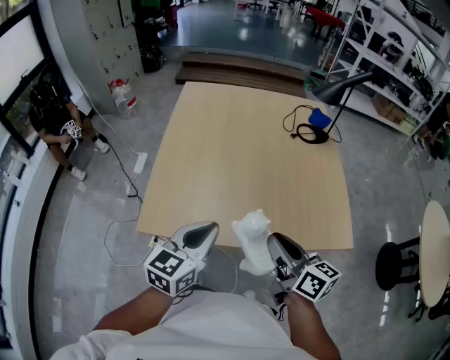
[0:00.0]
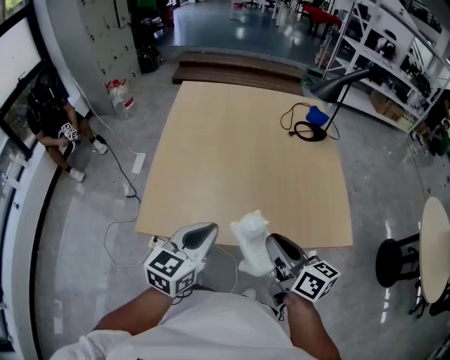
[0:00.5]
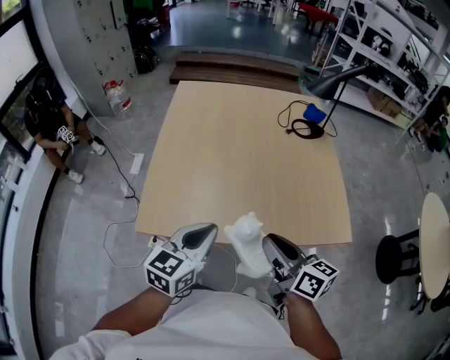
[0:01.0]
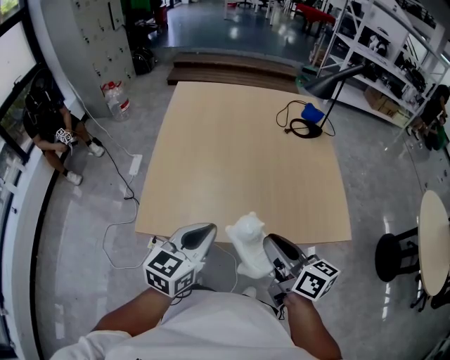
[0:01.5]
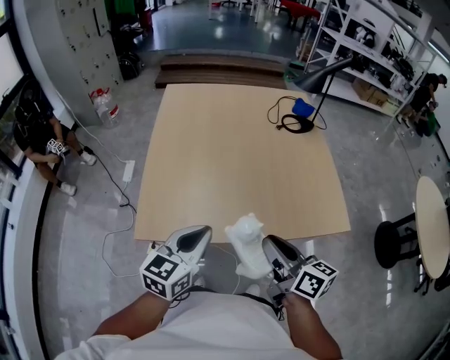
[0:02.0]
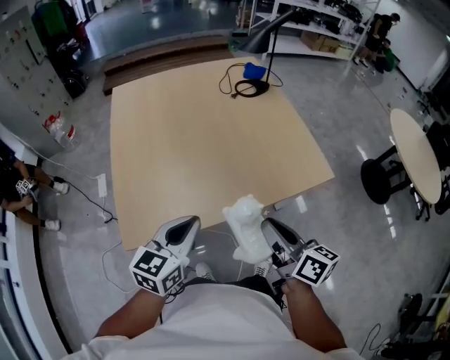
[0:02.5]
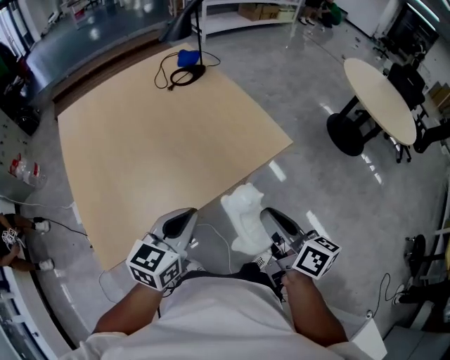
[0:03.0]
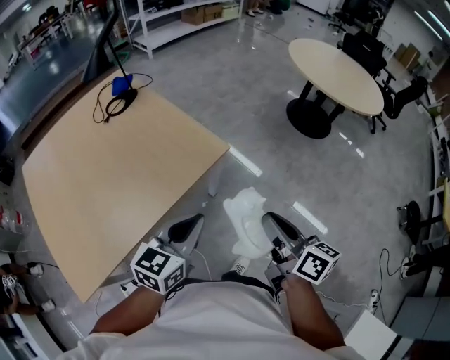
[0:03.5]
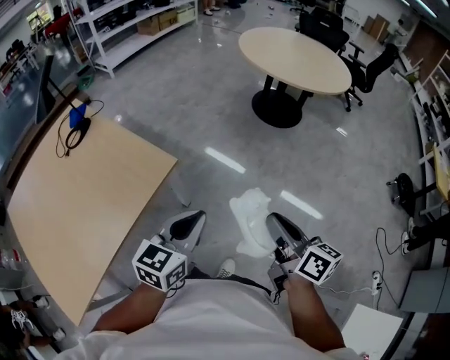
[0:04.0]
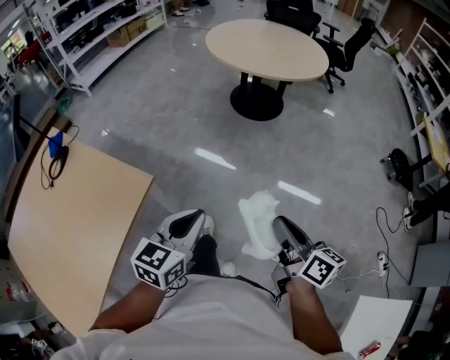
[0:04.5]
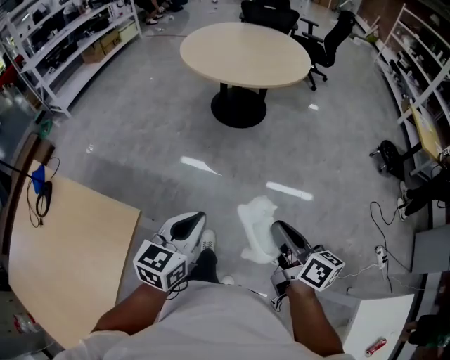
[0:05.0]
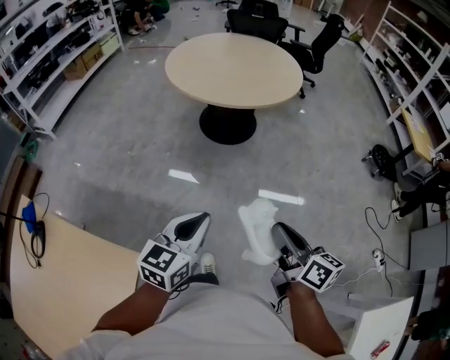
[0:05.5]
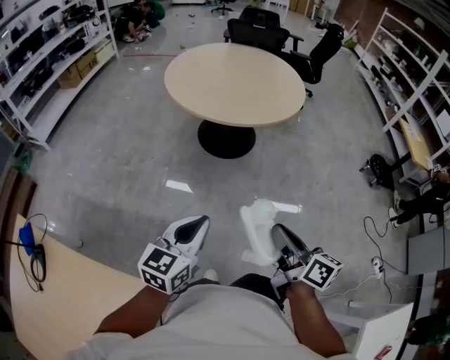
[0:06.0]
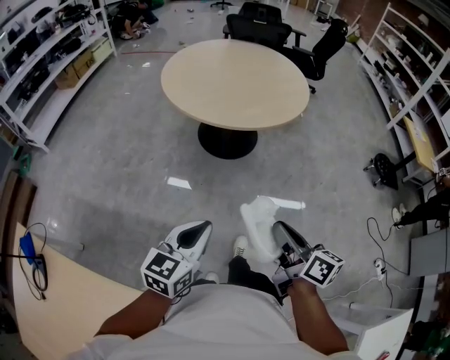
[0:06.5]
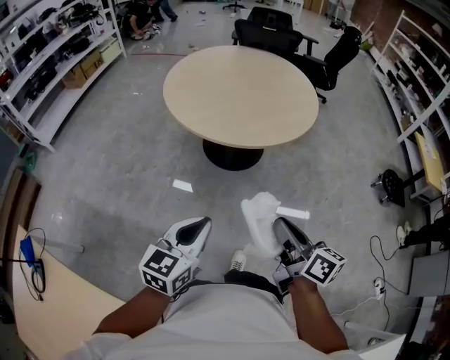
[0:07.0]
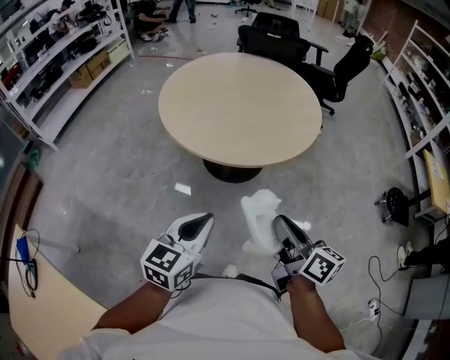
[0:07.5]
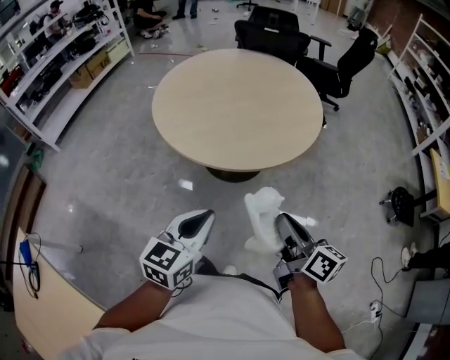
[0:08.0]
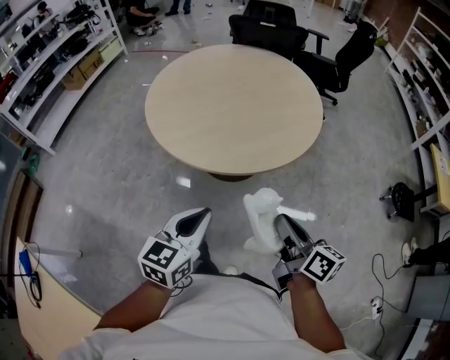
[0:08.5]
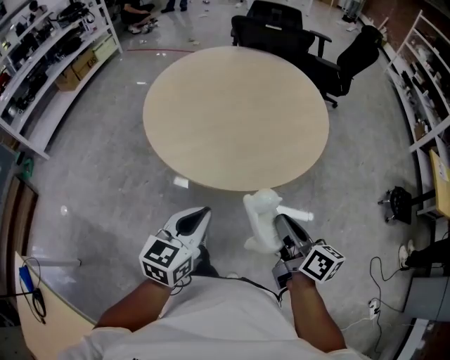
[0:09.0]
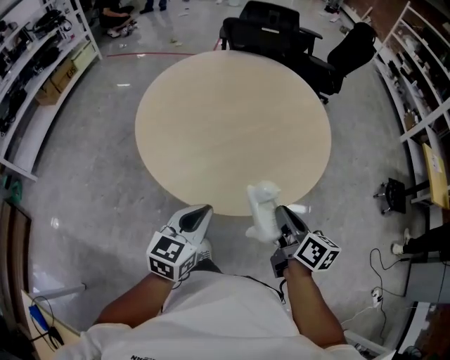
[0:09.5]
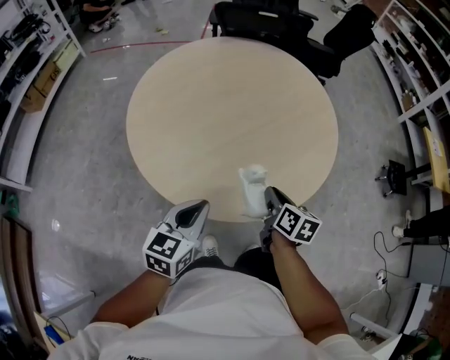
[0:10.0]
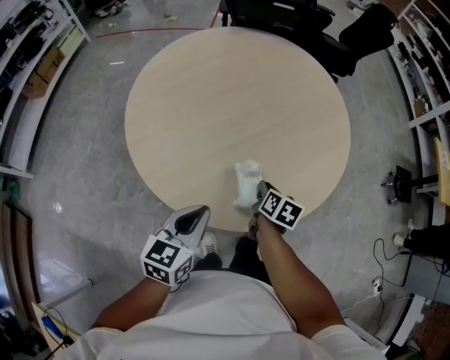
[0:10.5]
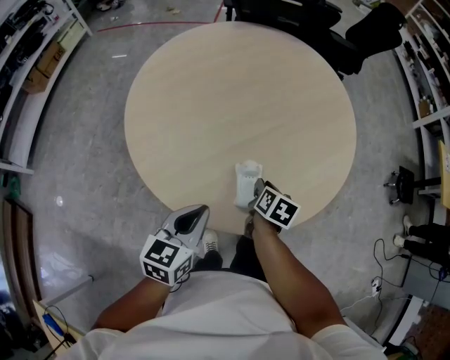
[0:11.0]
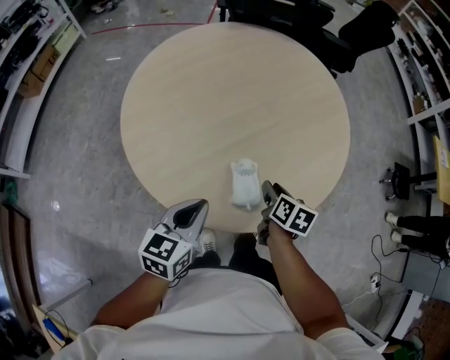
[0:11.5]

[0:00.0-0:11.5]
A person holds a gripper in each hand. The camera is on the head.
0:00.0 to 0:02.0: The grippers make only small movements.
0:02.0 to 0:04.0: Both grippers are carried roughly 50 cm. The right gripper swivels some 60 degrees, while the left gripper changes its angle by about 60 degrees.
0:04.0 to 0:06.0: The grippers both shift forward by about 30 cm. The right gripper changes its angle by about 20 degrees. Meanwhile the left gripper turns by some 20 degrees.
0:06.0 to 0:07.5: The right gripper goes some 25 cm forward; the left gripper heads forward and to the right, covering approximately 20 cm.
0:07.5 to 0:09.5: The grippers both shift forward by roughly 25 cm.
0:09.5 to 0:11.5: The left gripper moves forward, some 10 cm, while the right gripper shifts about 20 cm downward and forward, and swivels roughly 30 degrees.

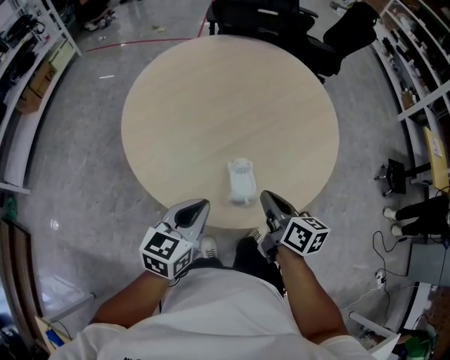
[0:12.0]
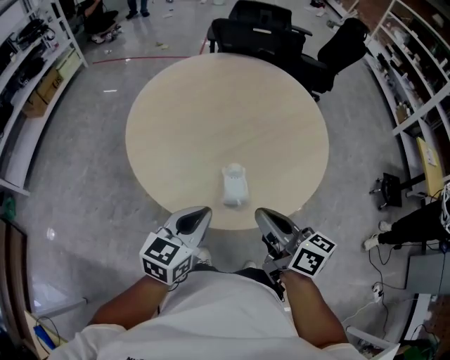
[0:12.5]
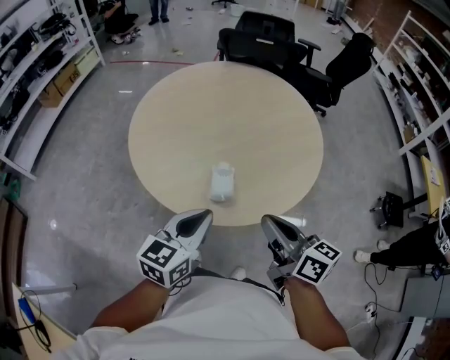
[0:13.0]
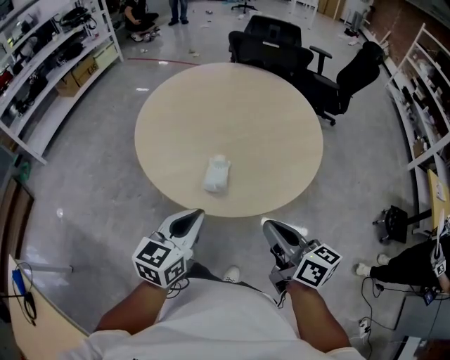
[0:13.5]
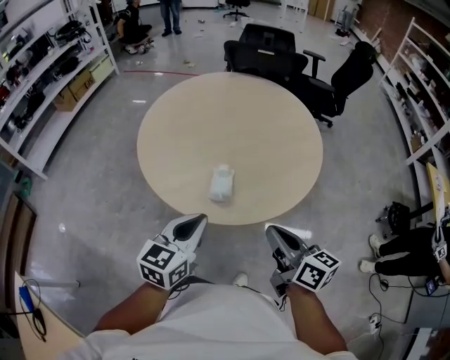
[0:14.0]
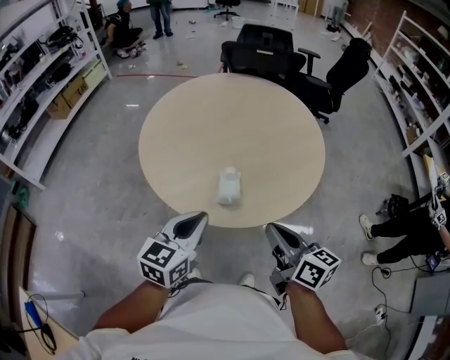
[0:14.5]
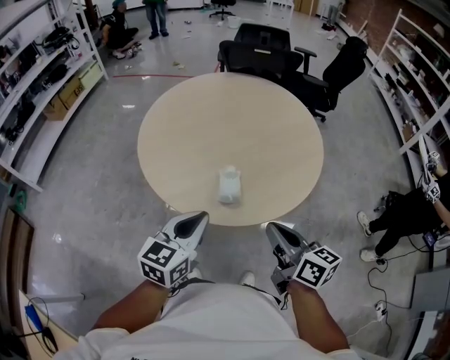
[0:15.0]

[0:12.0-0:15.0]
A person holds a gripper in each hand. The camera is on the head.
0:12.0 to 0:13.5: The left gripper travels backward, to the right and upward by some 15 cm. The right gripper moves backward, upward and to the right, approximately 20 cm, and rotates approximately 20 degrees.
0:13.5 to 0:15.0: Both grippers move to the left, roughly 5 cm.

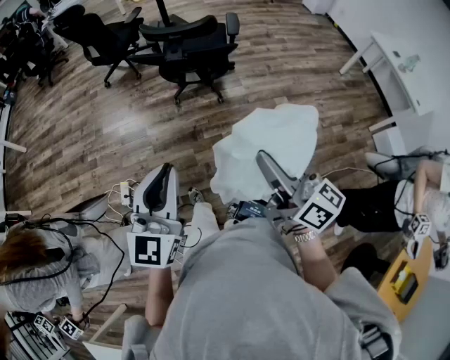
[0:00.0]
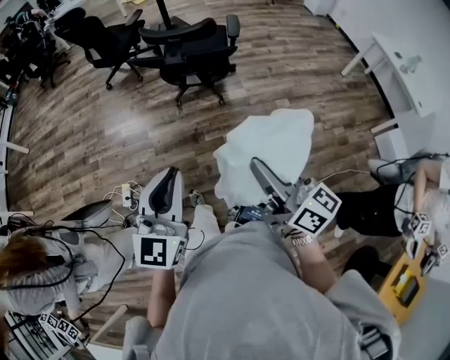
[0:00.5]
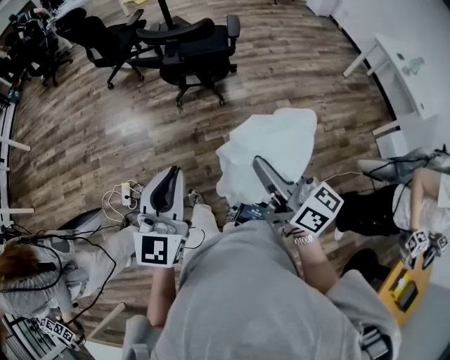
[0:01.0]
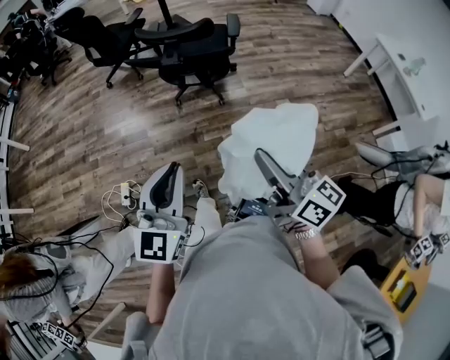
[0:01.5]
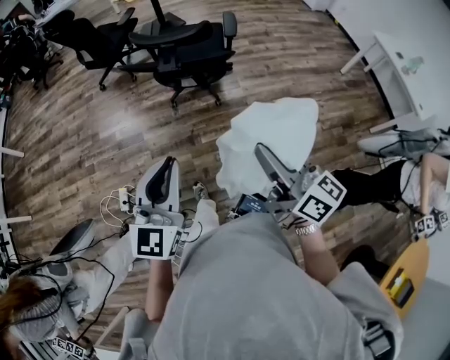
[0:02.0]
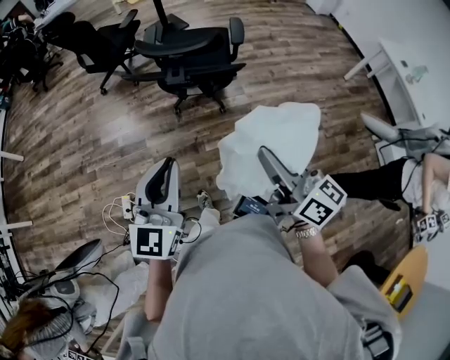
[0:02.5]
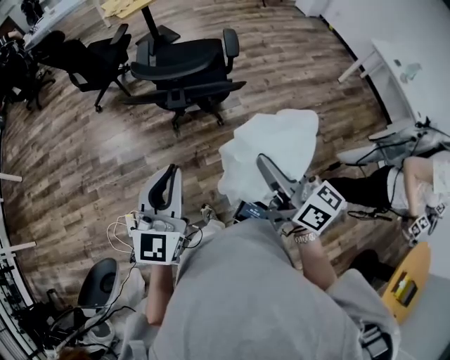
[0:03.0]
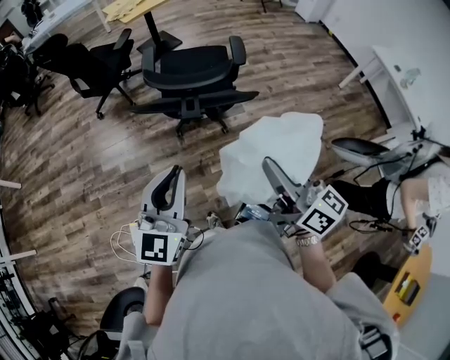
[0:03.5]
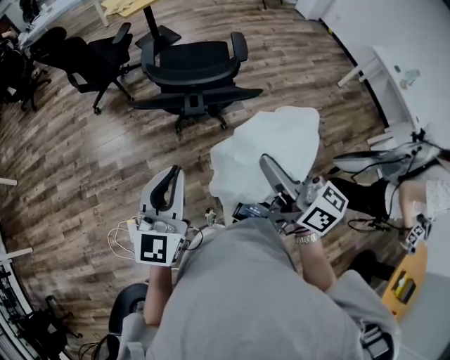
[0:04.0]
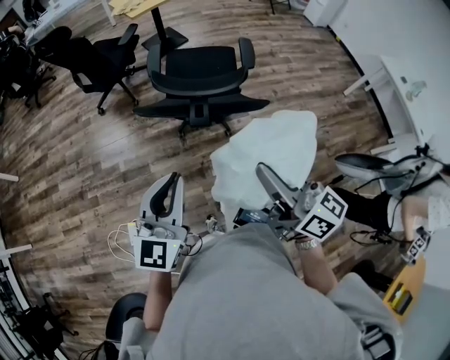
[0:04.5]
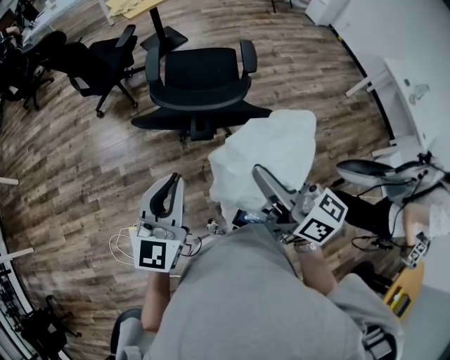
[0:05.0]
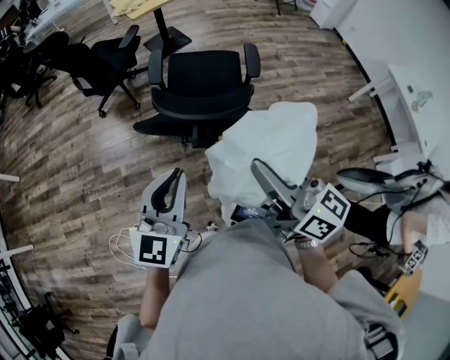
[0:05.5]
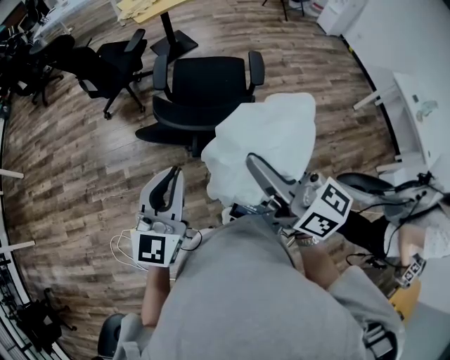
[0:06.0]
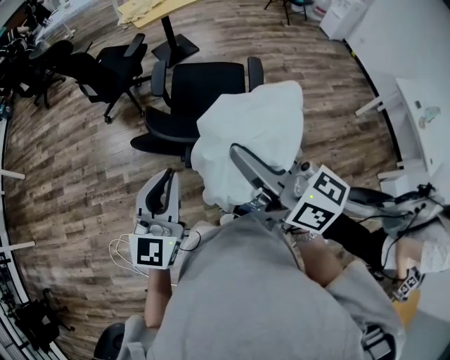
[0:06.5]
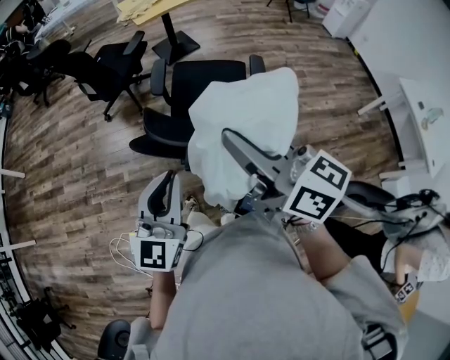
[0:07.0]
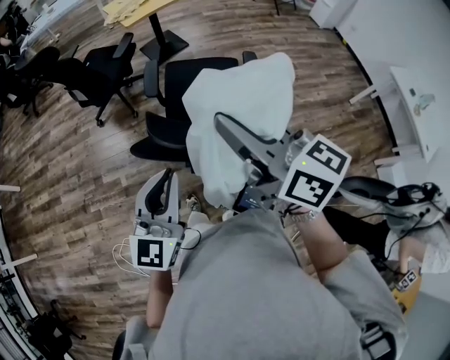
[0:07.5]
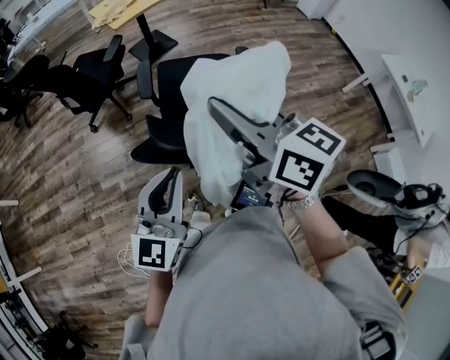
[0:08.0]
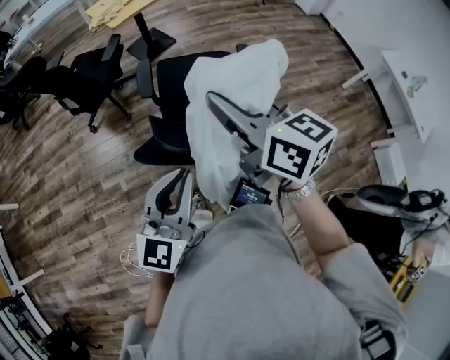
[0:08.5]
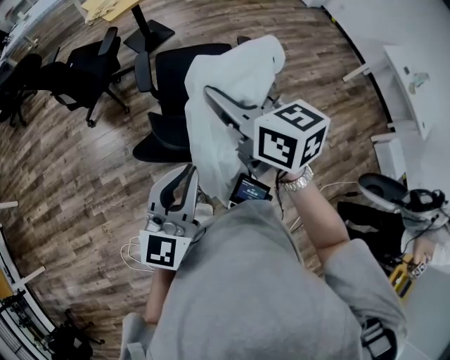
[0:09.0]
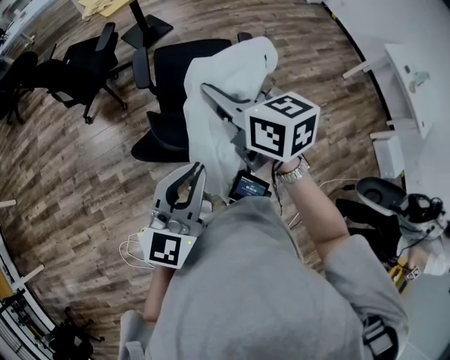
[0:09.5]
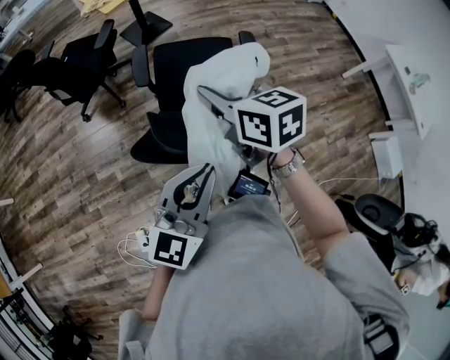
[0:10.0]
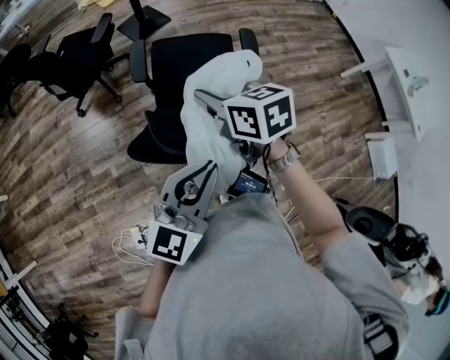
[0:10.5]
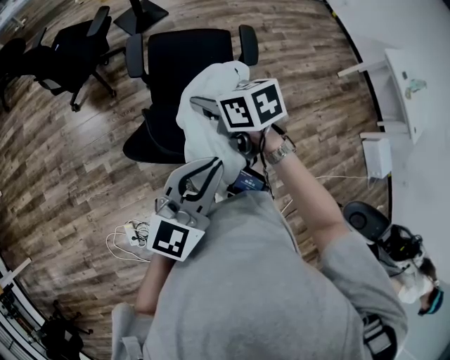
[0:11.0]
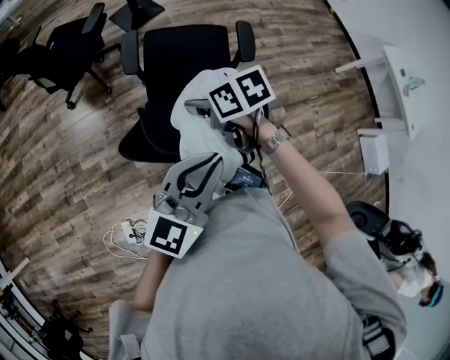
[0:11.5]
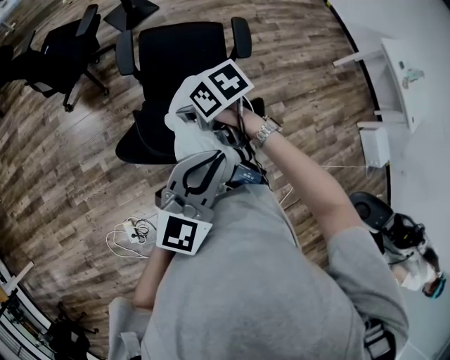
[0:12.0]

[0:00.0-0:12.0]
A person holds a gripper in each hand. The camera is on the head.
0:00.0 to 0:02.0: The two grippers go roughly 10 cm forward.
0:02.0 to 0:04.0: Both grippers travel together forward and to the left, some 20 cm.
0:04.0 to 0:06.0: Both grippers travel together forward, approximately 15 cm.
0:06.0 to 0:08.0: The right gripper shifts roughly 15 cm forward; the left gripper is displaced forward by some 10 cm.
0:08.0 to 0:10.0: The left gripper ends up approximately 5 cm from where it was. Meanwhile the right gripper shifts some 15 cm downward and forward, and rotates roughly 20 degrees.
0:10.0 to 0:12.0: The right gripper moves downward, approximately 15 cm, and swivels roughly 40 degrees. The left gripper shifts by roughly 5 cm.
